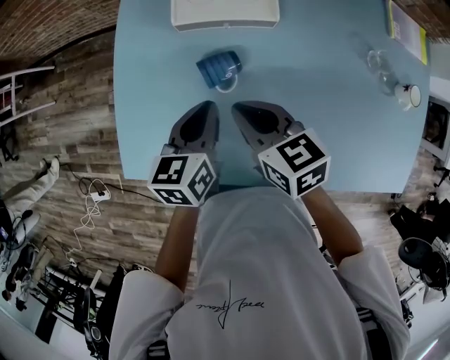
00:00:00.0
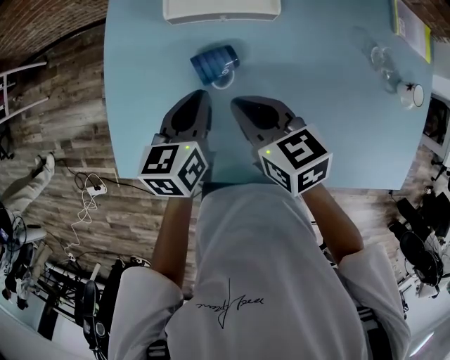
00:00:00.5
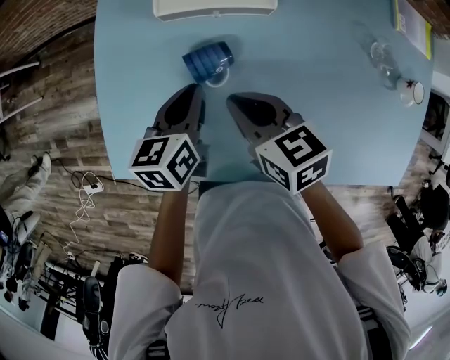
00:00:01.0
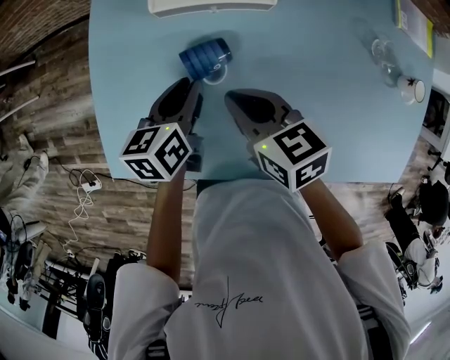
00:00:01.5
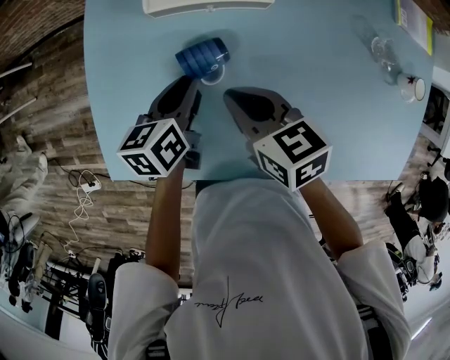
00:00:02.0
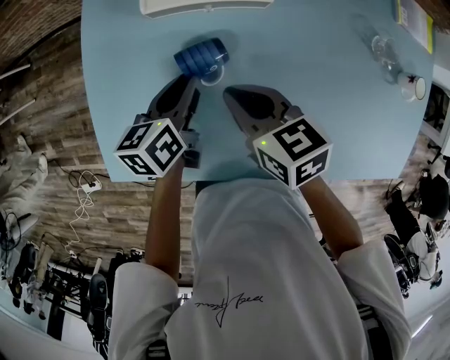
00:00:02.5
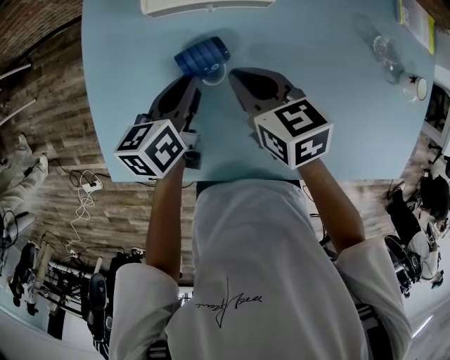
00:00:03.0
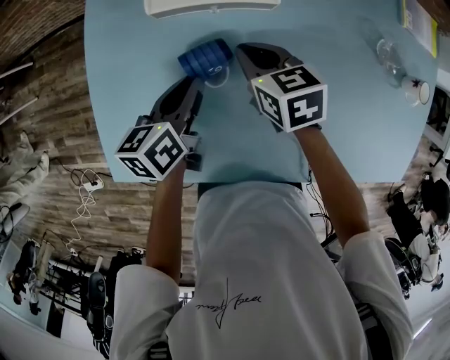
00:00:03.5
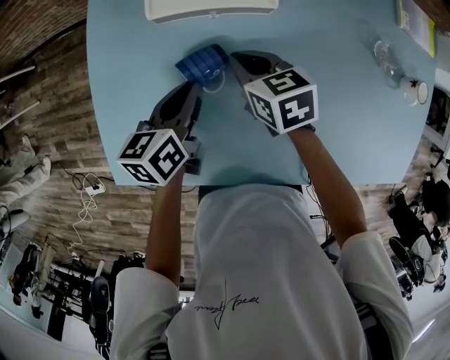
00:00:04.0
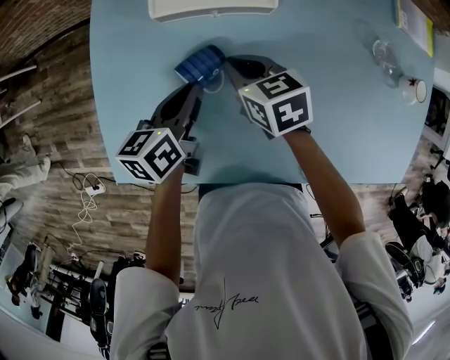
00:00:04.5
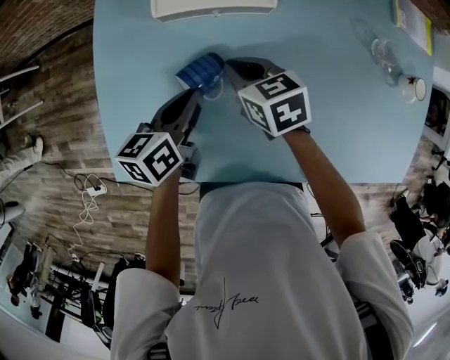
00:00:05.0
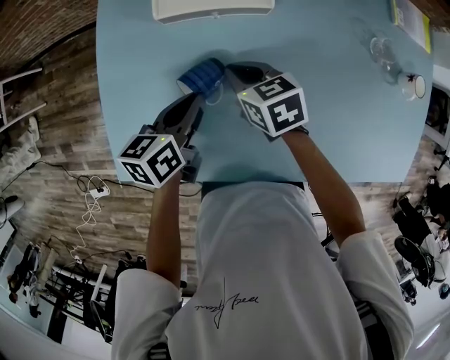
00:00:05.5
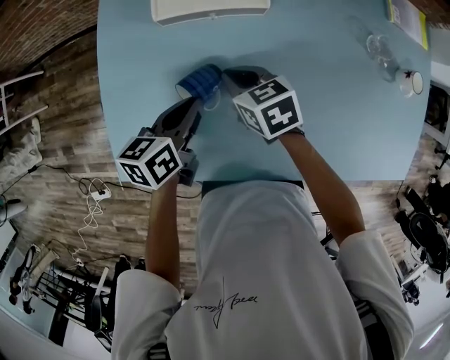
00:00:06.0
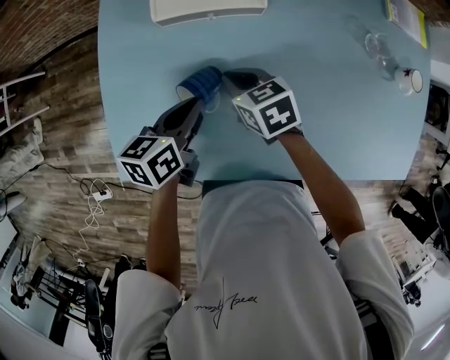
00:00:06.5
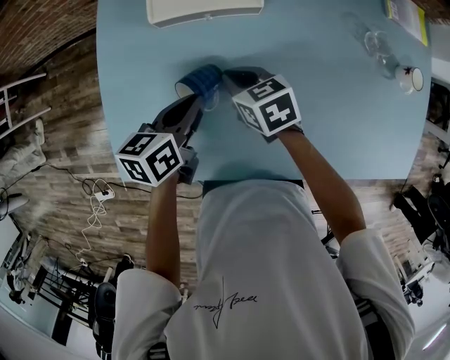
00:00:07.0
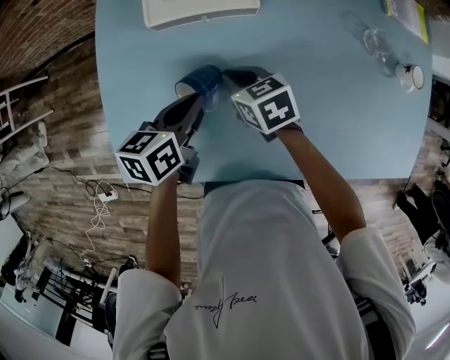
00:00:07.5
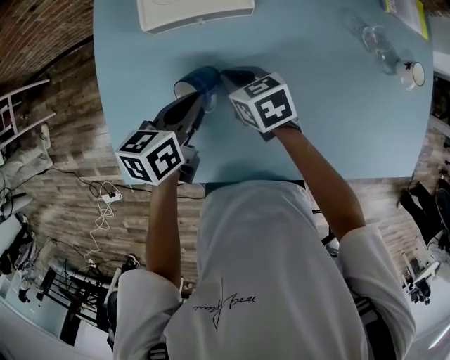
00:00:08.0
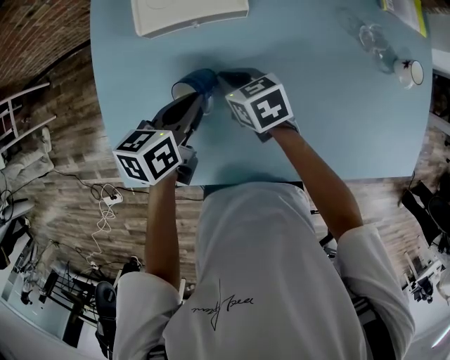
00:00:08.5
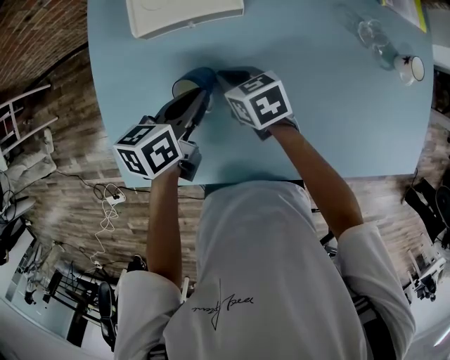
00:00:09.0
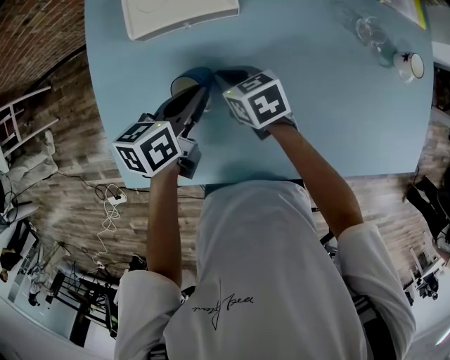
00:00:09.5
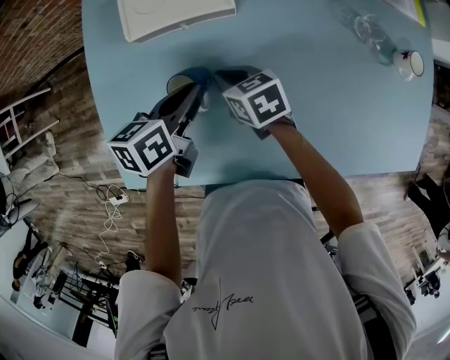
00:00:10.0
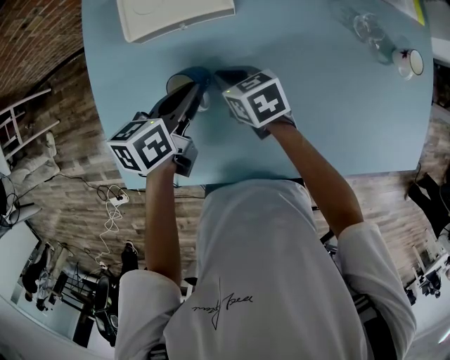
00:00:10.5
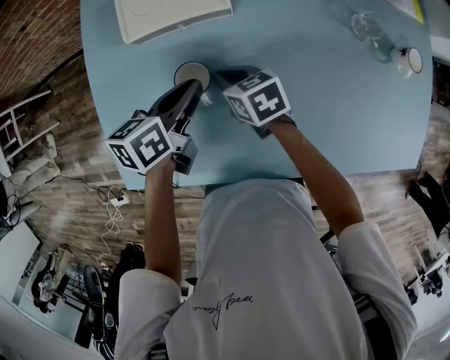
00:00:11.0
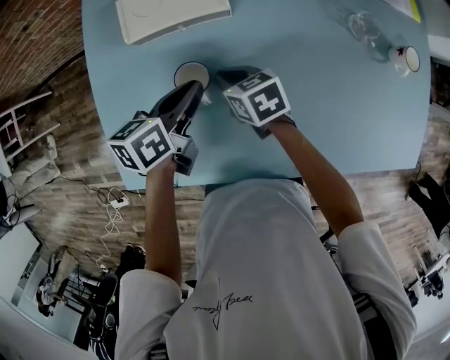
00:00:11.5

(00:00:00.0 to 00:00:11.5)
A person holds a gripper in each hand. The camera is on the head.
00:00:00.0 - 00:00:02.0: The left gripper is displaced downward by about 5 cm.
00:00:02.0 - 00:00:04.0: The right gripper goes roughly 10 cm forward and downward.
00:00:04.0 - 00:00:09.5: The grippers stay close to where they were, moving slightly.
00:00:09.5 - 00:00:11.5: The grippers stay close to where they were, moving slightly.

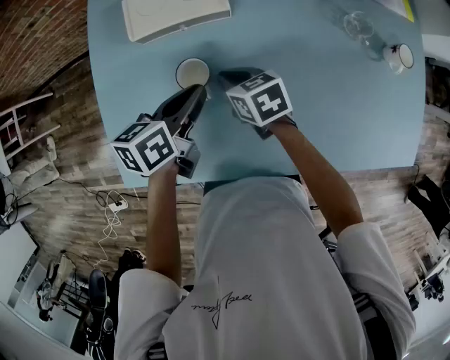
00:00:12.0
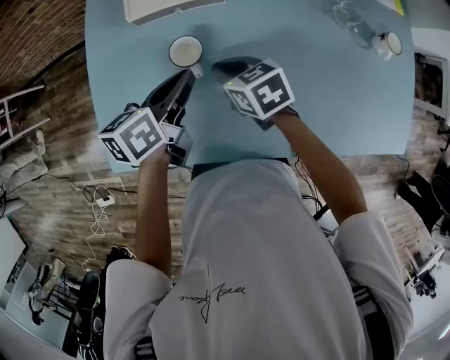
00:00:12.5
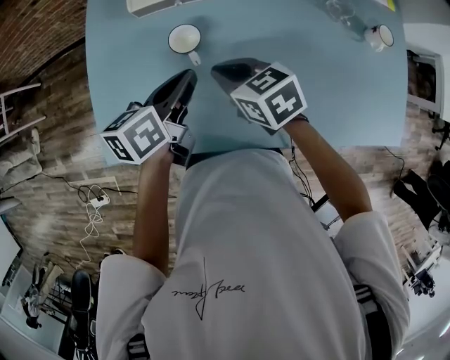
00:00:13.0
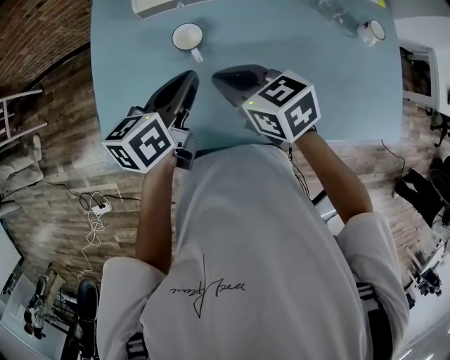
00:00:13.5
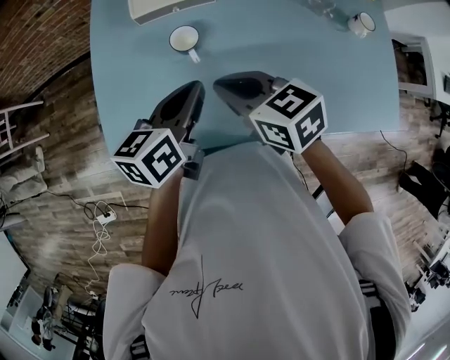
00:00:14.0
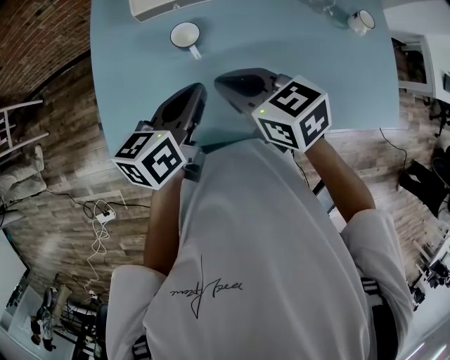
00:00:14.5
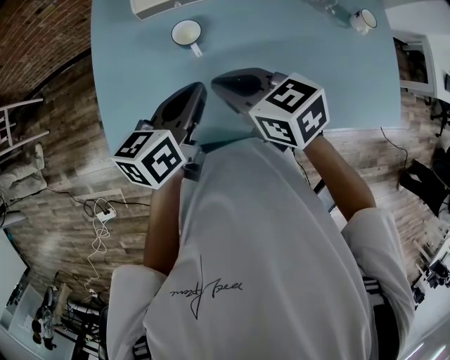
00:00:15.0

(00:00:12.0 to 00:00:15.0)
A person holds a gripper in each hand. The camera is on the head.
00:00:12.0 - 00:00:13.5: The left gripper moves backward and upward, some 10 cm. Meanwhile the right gripper moves upward and backward, some 15 cm.
00:00:13.5 - 00:00:15.0: The left gripper changes place by roughly 5 cm.

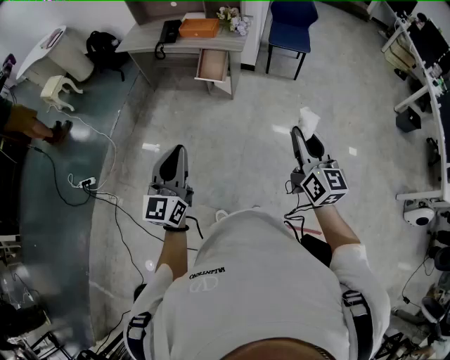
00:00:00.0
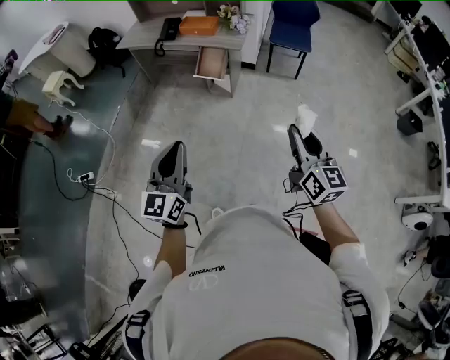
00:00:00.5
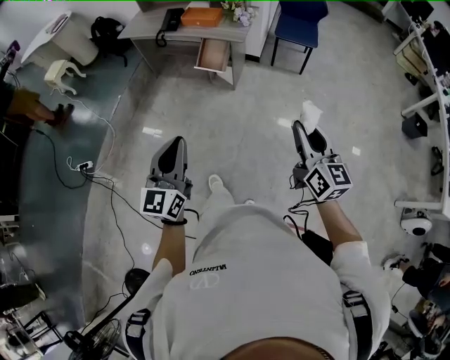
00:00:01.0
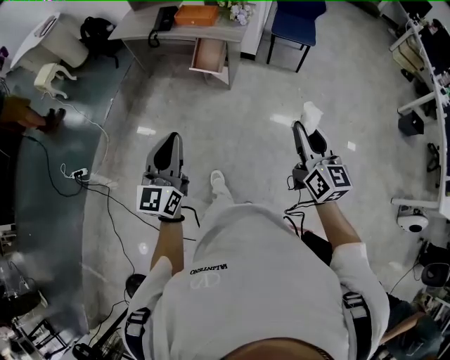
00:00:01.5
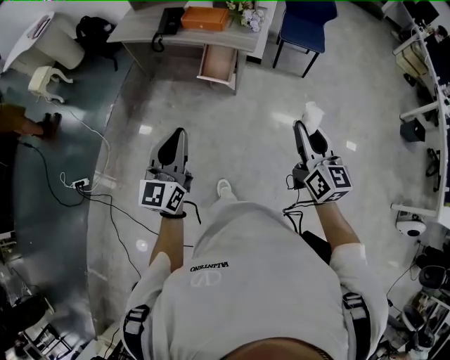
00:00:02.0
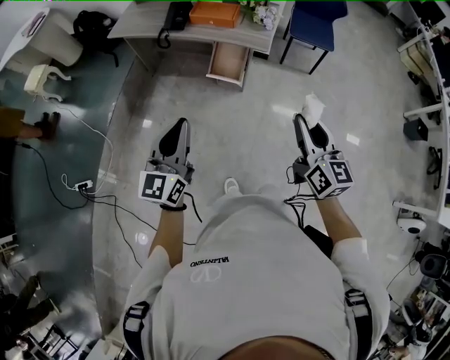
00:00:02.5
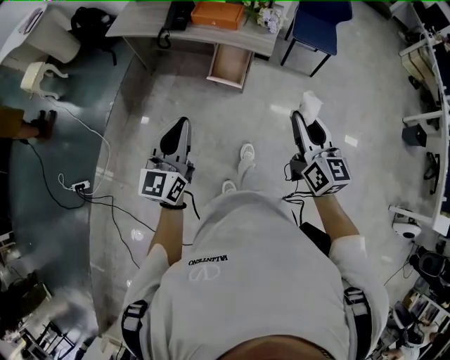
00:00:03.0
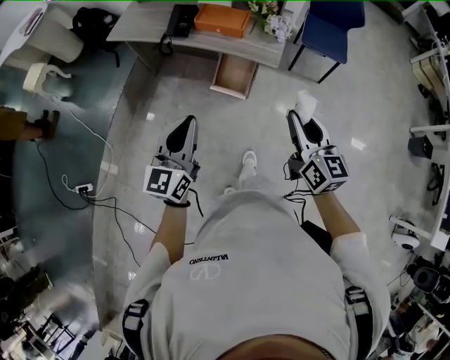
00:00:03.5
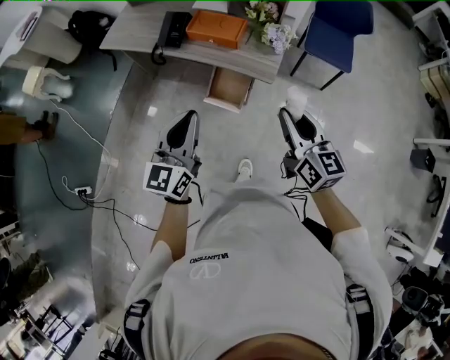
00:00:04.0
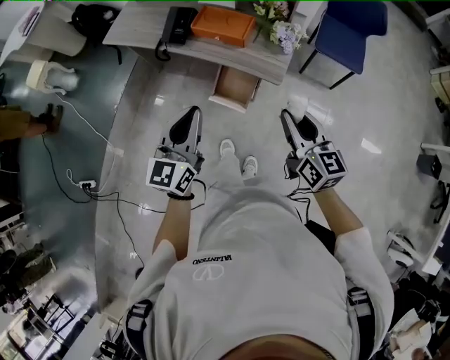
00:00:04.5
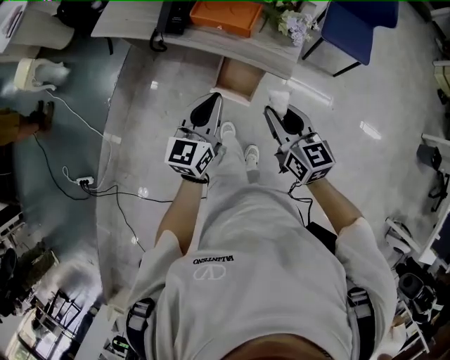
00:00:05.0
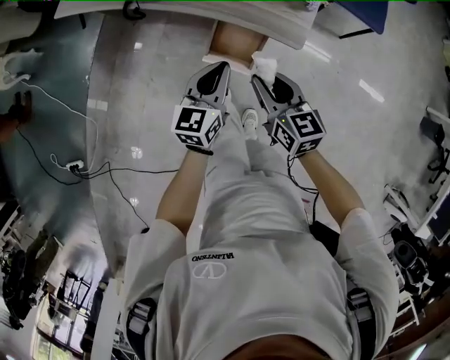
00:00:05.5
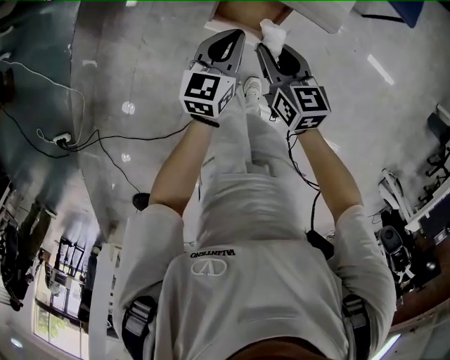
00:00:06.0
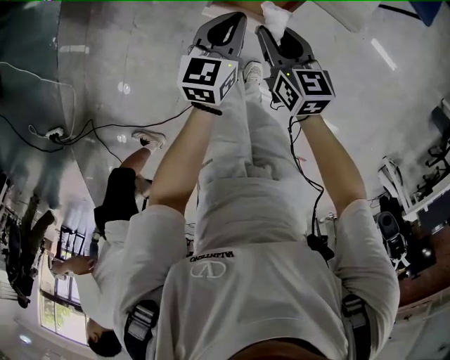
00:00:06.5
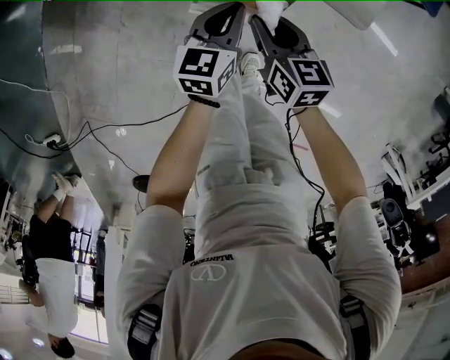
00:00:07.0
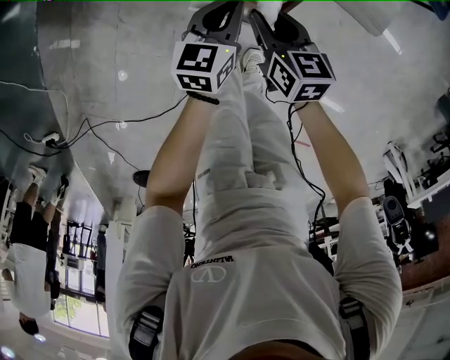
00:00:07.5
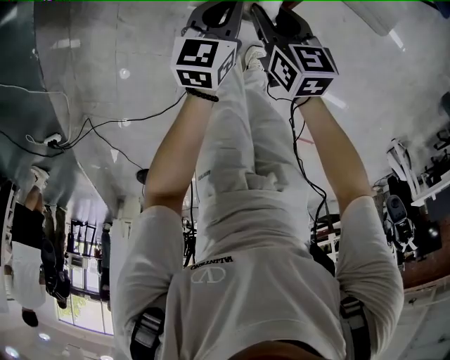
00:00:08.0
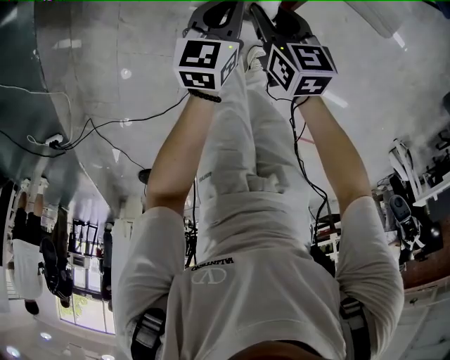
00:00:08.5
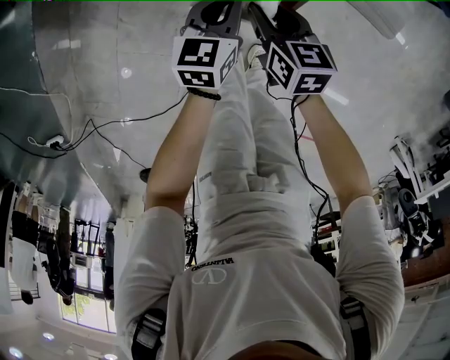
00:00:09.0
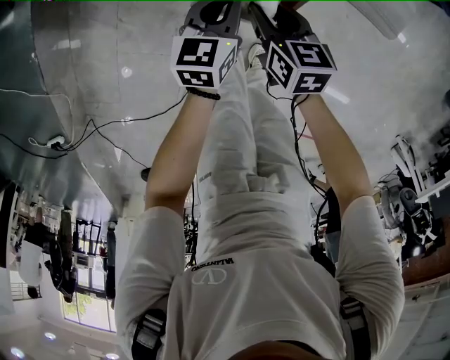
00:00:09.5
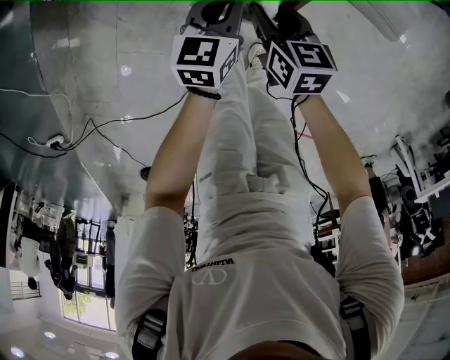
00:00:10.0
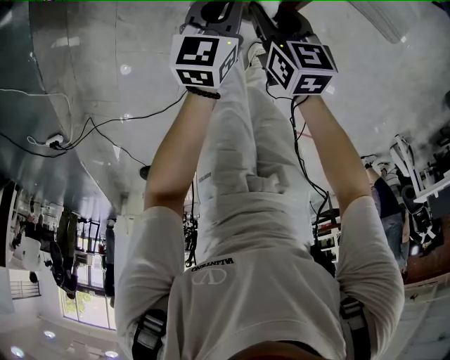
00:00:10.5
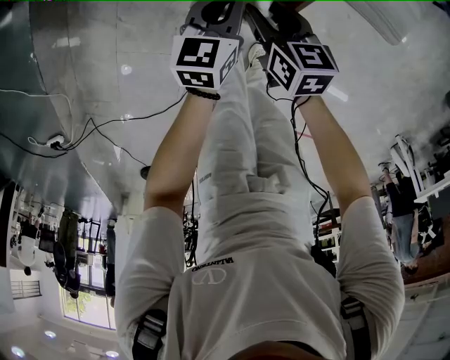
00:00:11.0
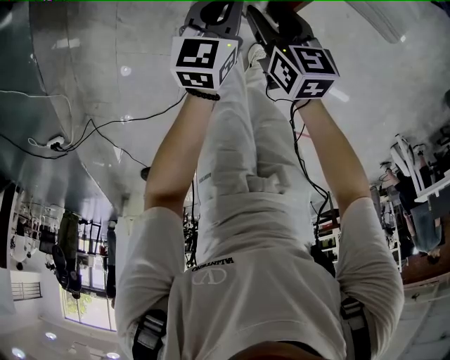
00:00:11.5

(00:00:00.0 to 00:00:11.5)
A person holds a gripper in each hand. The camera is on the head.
00:00:00.0 - 00:00:02.0: The two grippers go some 20 cm forward.
00:00:02.0 - 00:00:04.0: Both grippers move forward, roughly 35 cm.
00:00:04.0 - 00:00:06.0: Both grippers travel together downward and forward, roughly 40 cm. The right gripper rotates some 30 degrees; the left gripper swivels some 30 degrees.
00:00:06.0 - 00:00:07.5: Both grippers travel together downward, about 15 cm.
00:00:07.5 - 00:00:09.5: The grippers stay close to where they were, moving slightly.
00:00:09.5 - 00:00:11.5: Neither gripper changes place.

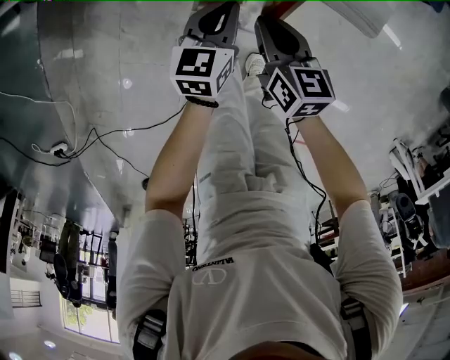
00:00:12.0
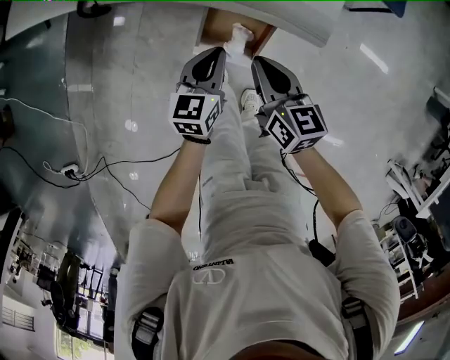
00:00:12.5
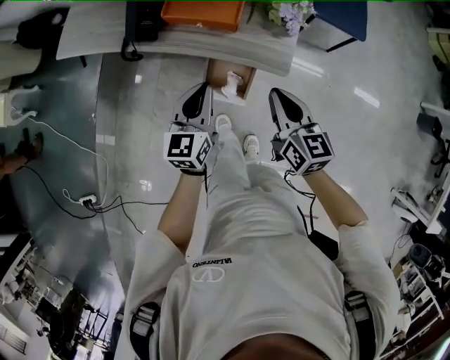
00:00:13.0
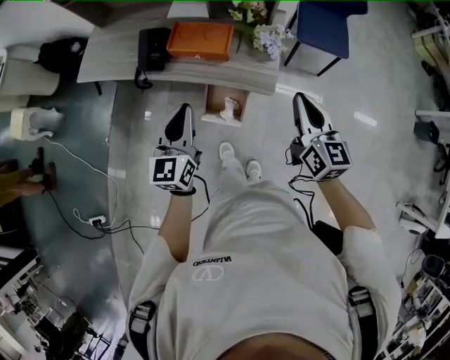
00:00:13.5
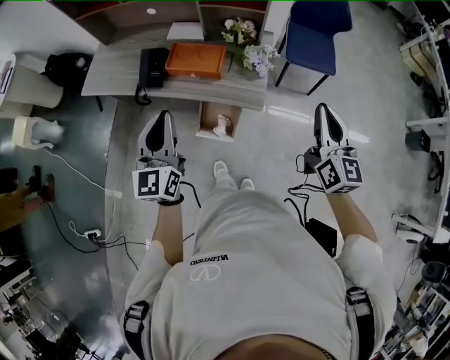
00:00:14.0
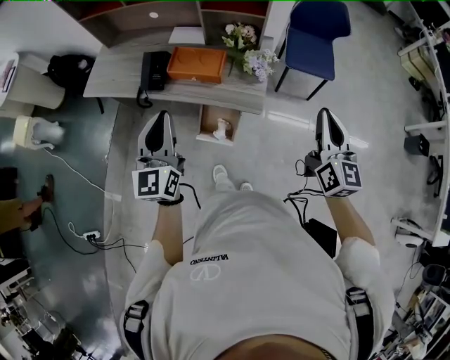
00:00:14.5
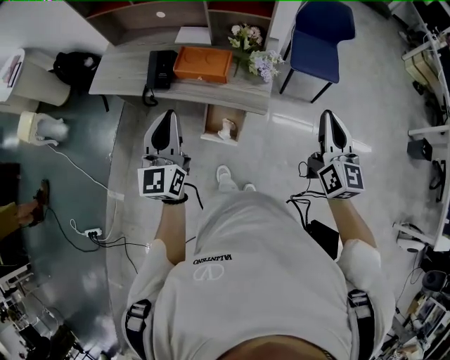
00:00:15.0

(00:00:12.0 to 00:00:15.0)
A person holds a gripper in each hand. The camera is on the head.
00:00:12.0 - 00:00:13.5: The two grippers go about 40 cm upward. The right gripper changes its angle by about 30 degrees, while the left gripper turns by approximately 30 degrees.
00:00:13.5 - 00:00:15.0: The left gripper travels upward by about 10 cm; the right gripper moves upward and to the right, about 15 cm.
